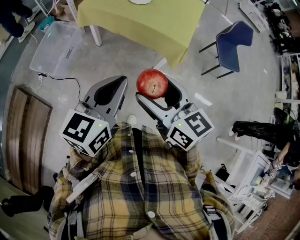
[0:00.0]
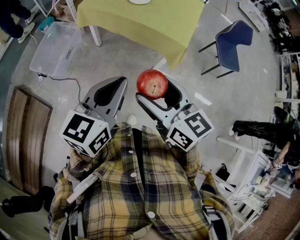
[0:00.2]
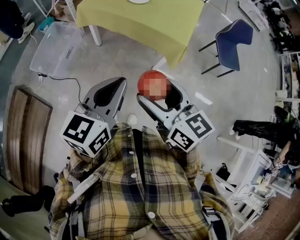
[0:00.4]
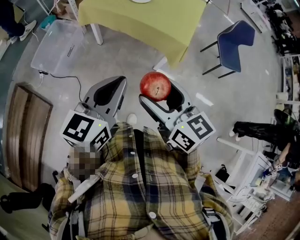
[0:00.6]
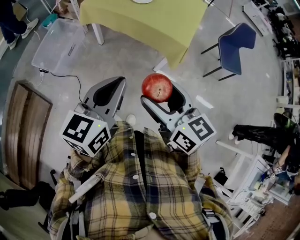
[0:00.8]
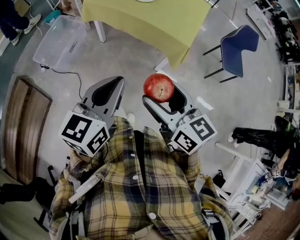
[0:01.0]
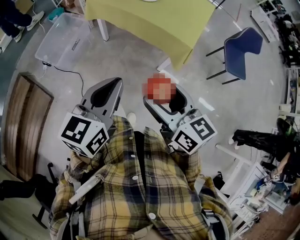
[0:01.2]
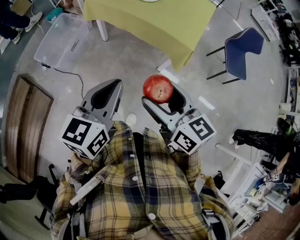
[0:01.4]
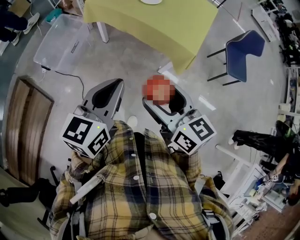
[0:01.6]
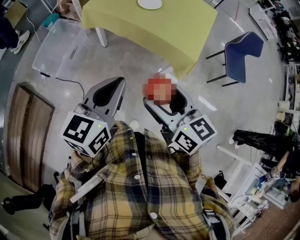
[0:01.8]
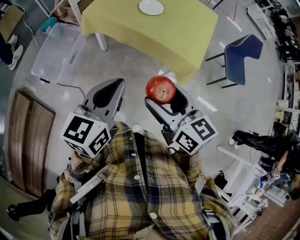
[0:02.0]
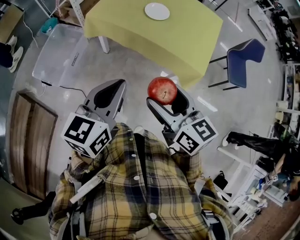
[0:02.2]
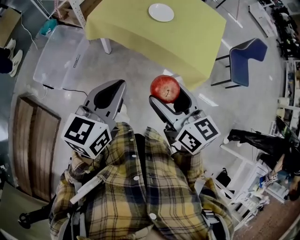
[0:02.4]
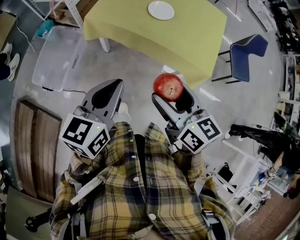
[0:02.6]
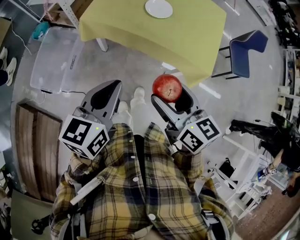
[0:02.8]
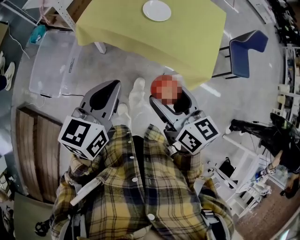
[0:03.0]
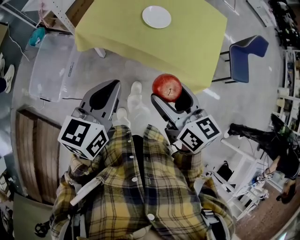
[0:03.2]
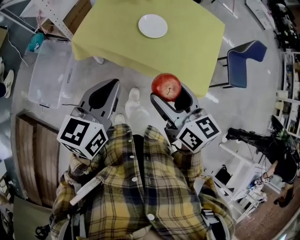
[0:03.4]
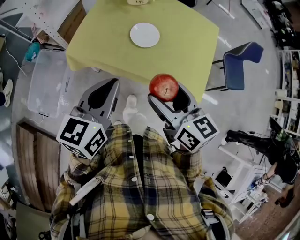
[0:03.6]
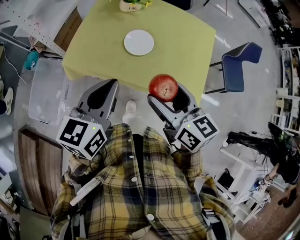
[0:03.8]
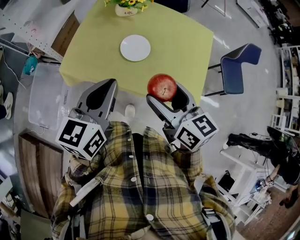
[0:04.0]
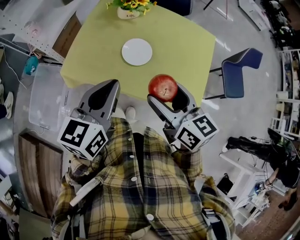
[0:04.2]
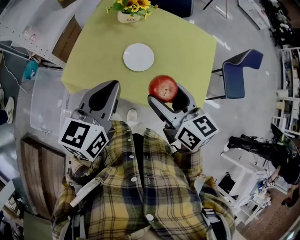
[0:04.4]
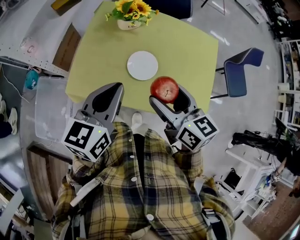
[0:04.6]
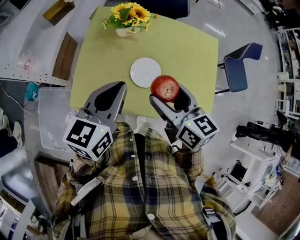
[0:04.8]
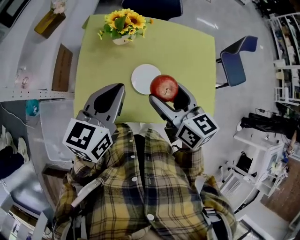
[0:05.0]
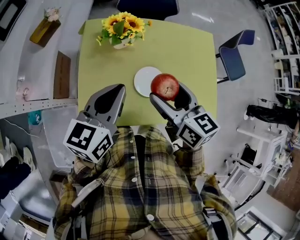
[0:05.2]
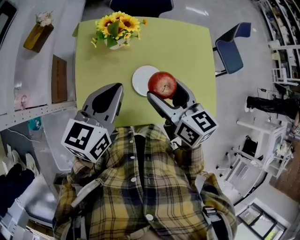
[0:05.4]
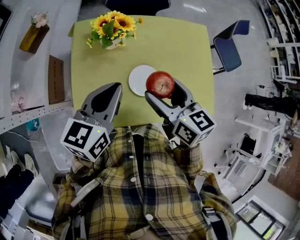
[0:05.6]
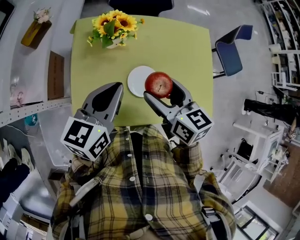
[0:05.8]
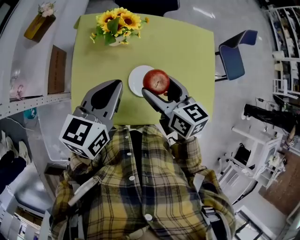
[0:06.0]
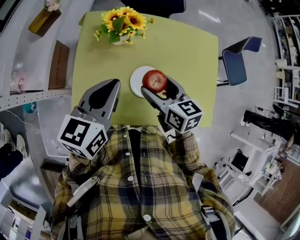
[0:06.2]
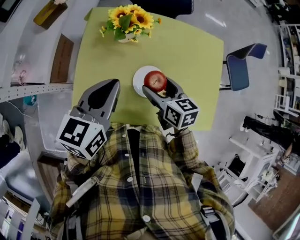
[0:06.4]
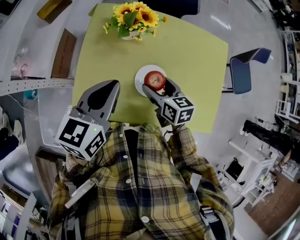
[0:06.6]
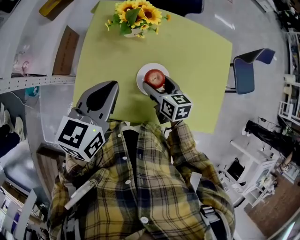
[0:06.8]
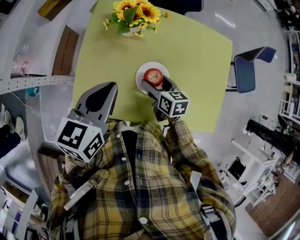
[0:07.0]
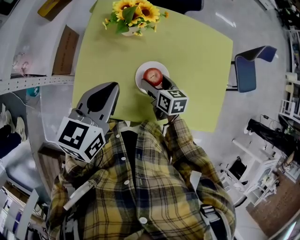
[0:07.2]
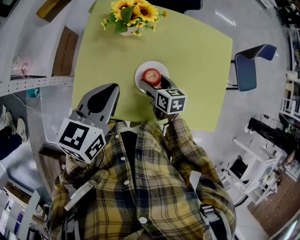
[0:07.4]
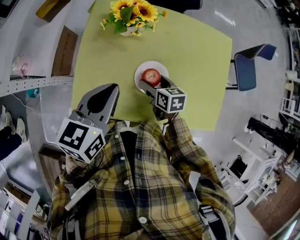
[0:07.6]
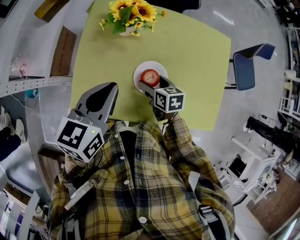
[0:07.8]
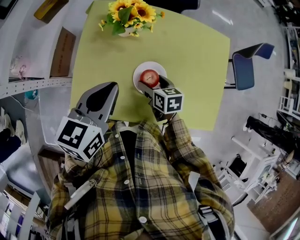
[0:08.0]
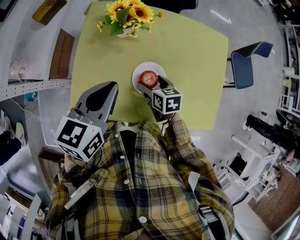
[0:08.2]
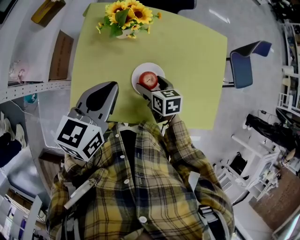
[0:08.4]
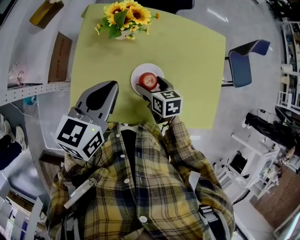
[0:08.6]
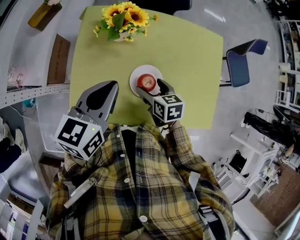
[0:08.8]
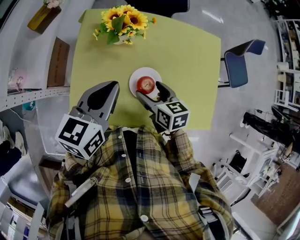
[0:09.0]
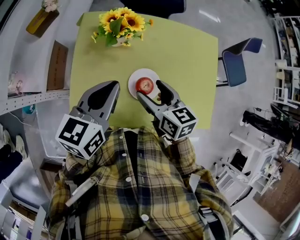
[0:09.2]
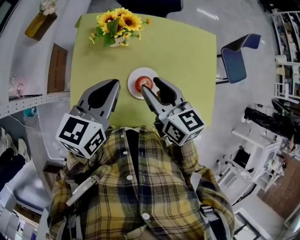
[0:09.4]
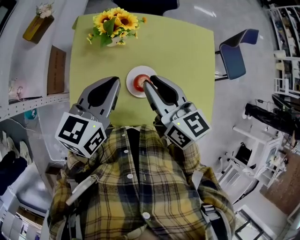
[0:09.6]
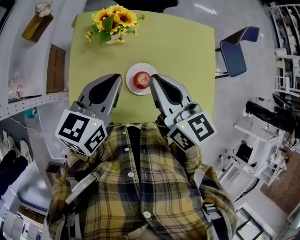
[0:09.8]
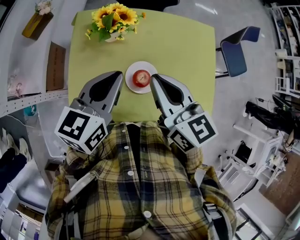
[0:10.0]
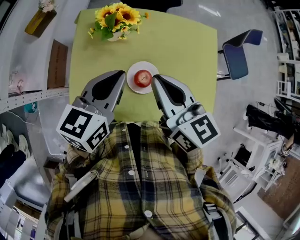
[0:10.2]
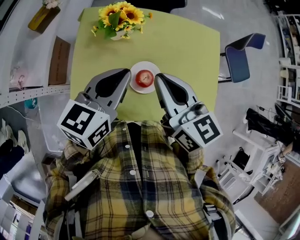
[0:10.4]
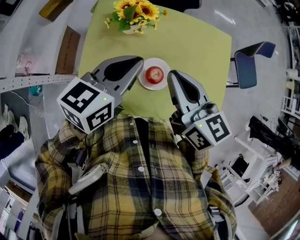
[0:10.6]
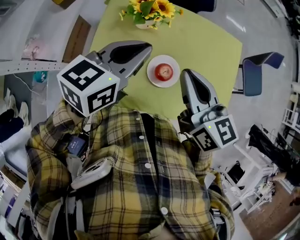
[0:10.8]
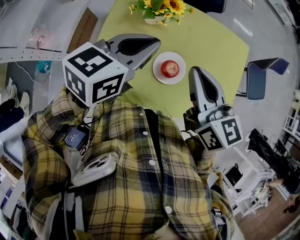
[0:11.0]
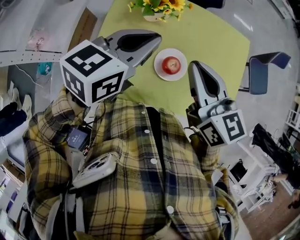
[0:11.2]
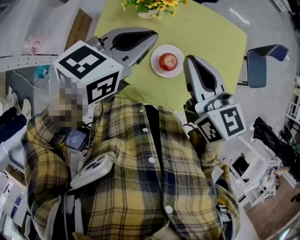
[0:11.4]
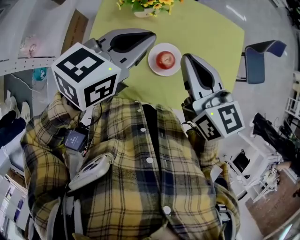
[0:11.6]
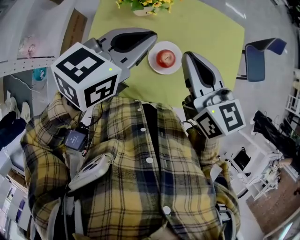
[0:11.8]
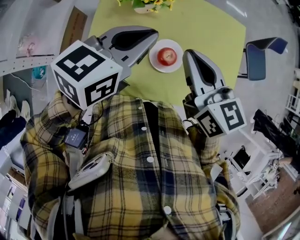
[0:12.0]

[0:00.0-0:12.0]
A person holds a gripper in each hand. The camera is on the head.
0:00.0 to 0:01.6: The left gripper shifts by some 5 cm, while the right gripper shifts by some 5 cm.
0:01.6 to 0:03.0: Both grippers travel together forward and to the left, approximately 25 cm.
0:03.0 to 0:04.4: Both grippers move forward, approximately 25 cm.
0:04.4 to 0:06.0: The left gripper is displaced forward by about 20 cm; the right gripper heads forward and to the left, covering about 20 cm.
0:06.0 to 0:07.6: The right gripper goes roughly 20 cm downward.
0:07.6 to 0:09.0: The right gripper is displaced upward by about 10 cm.
0:09.0 to 0:10.4: The left gripper moves some 5 cm. The right gripper heads upward, covering approximately 20 cm, rotates roughly 30 degrees, and closes up.
0:10.4 to 0:12.0: There are only small adjustments of the grippers.

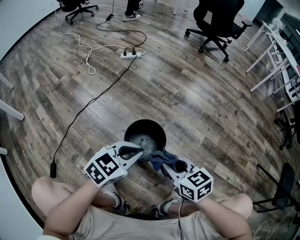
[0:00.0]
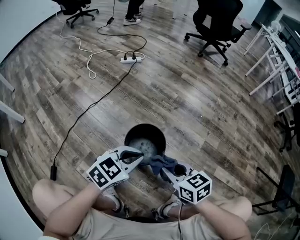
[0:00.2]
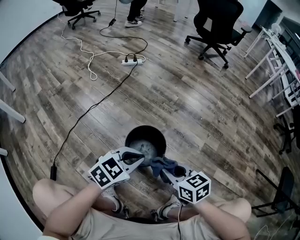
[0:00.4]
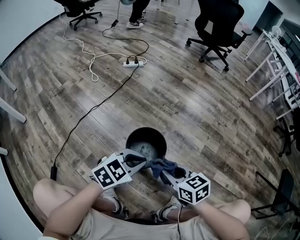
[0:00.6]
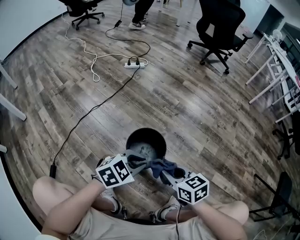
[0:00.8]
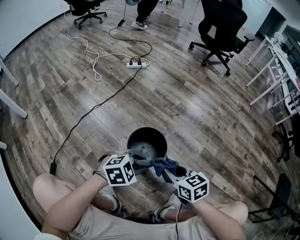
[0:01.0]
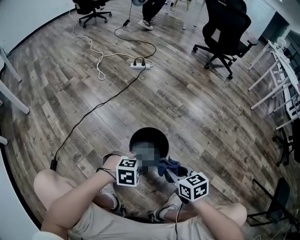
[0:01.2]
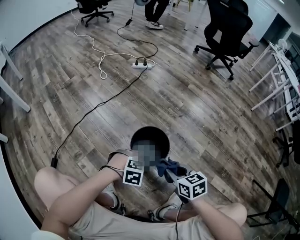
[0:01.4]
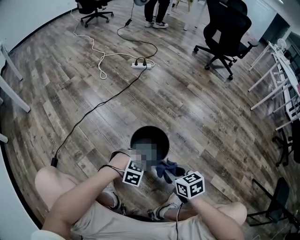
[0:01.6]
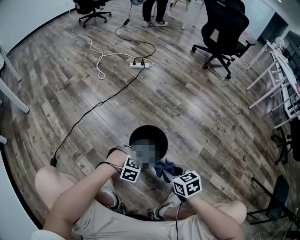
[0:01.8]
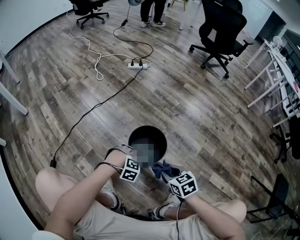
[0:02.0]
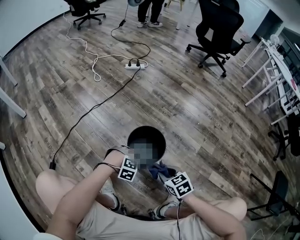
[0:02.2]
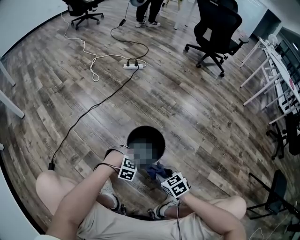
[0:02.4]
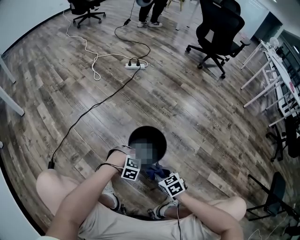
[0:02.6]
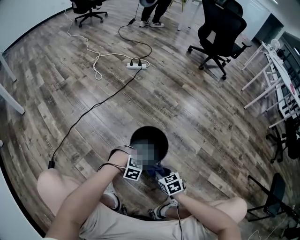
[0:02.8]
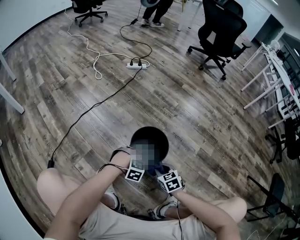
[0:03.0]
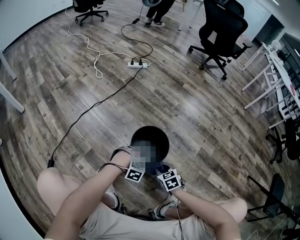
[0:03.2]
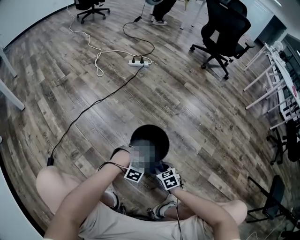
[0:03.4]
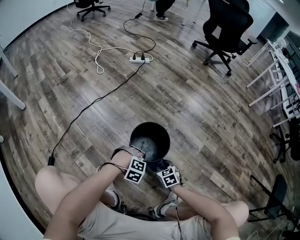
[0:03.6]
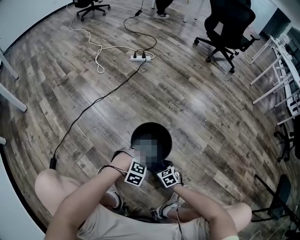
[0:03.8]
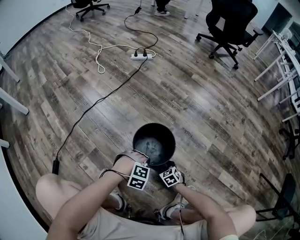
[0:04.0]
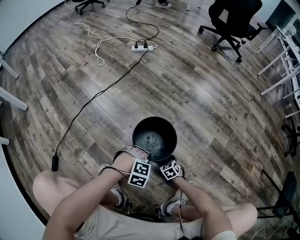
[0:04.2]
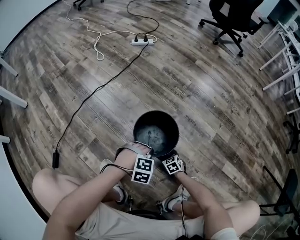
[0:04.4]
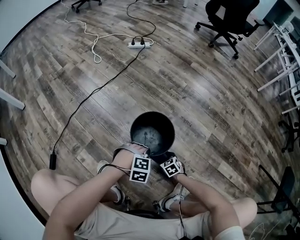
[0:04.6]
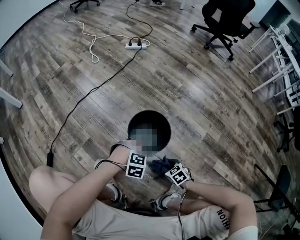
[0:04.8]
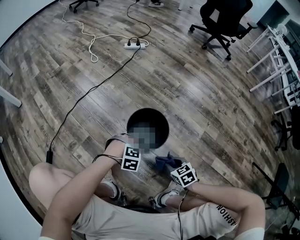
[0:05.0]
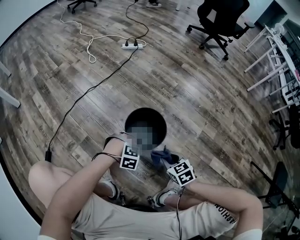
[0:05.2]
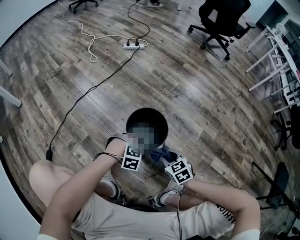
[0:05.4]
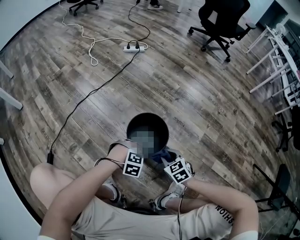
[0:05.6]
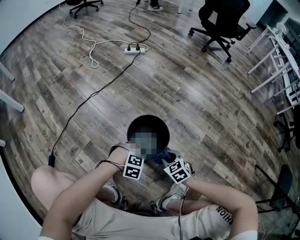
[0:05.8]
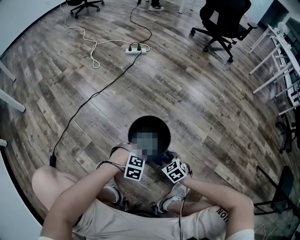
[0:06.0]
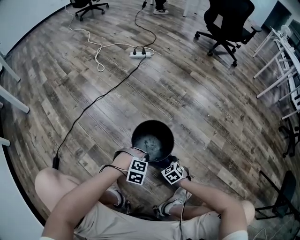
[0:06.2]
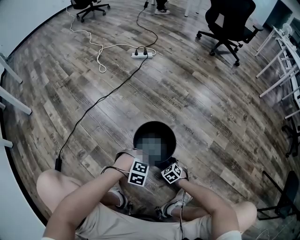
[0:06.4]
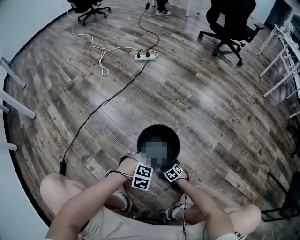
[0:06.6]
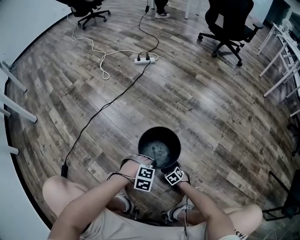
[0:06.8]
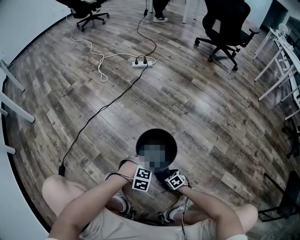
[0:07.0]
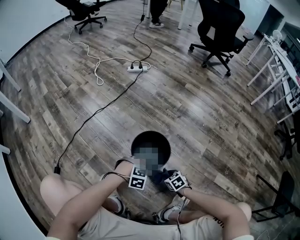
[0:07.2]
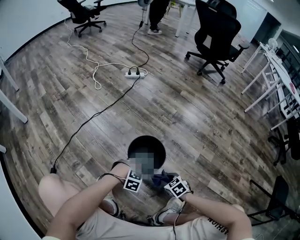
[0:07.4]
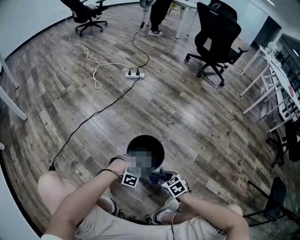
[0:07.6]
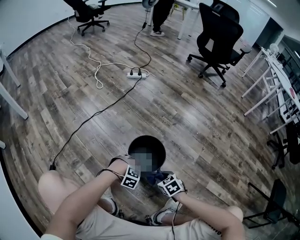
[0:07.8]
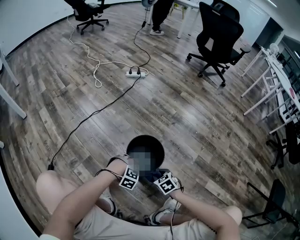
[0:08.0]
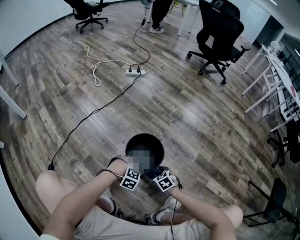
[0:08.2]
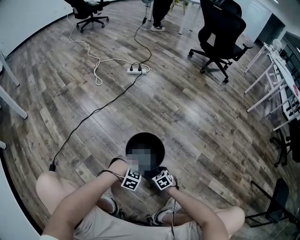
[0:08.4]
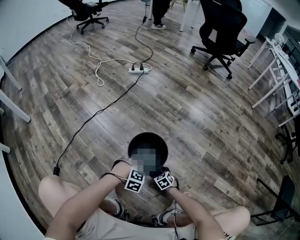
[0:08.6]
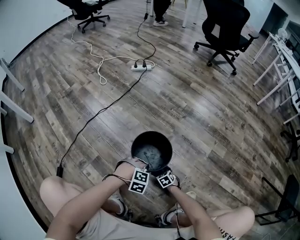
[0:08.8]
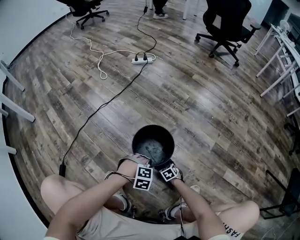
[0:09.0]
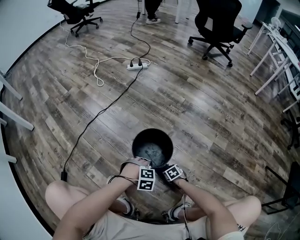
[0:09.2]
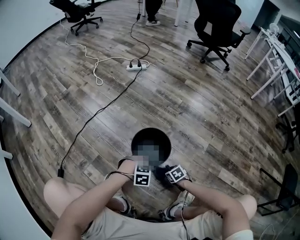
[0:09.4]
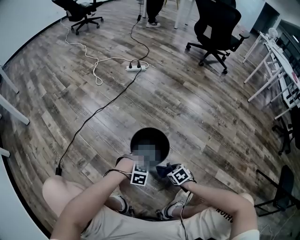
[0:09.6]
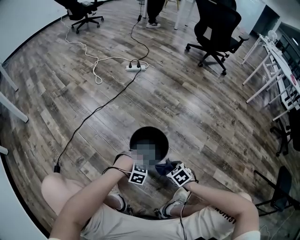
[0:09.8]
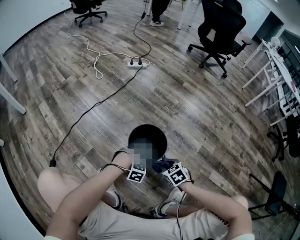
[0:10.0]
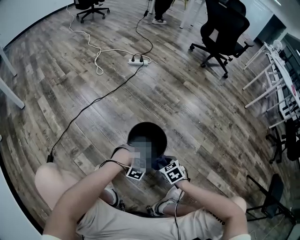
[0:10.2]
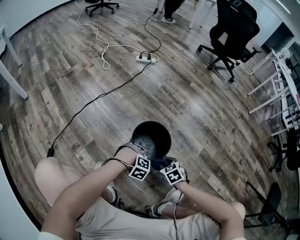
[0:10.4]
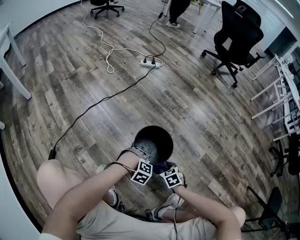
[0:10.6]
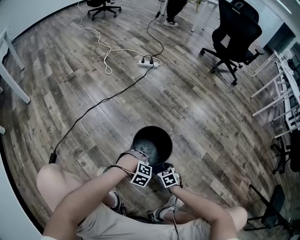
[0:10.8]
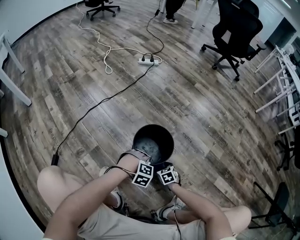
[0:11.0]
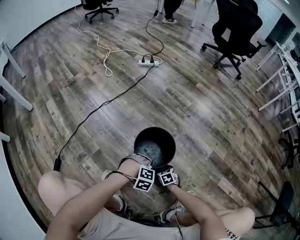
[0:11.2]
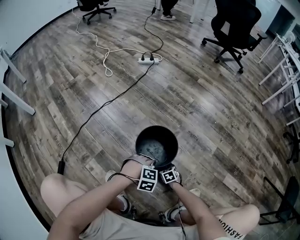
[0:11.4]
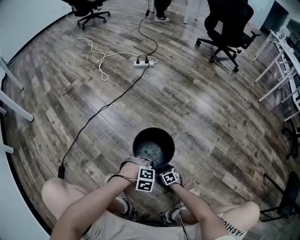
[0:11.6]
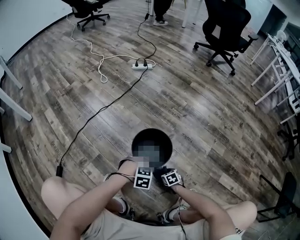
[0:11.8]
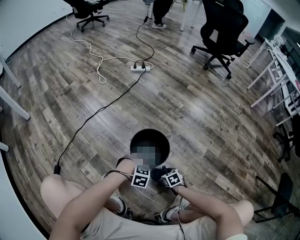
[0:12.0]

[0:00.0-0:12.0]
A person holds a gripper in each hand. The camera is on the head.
0:00.0 to 0:01.6: The right gripper is displaced downward by approximately 5 cm.
0:01.6 to 0:03.0: The right gripper is displaced downward by some 15 cm.
0:03.0 to 0:04.4: The right gripper goes roughly 20 cm downward.
0:04.4 to 0:06.0: The right gripper shifts approximately 15 cm upward.
0:06.0 to 0:07.6: The right gripper travels downward and back again, about 15 cm each way.
0:07.6 to 0:09.0: The right gripper shifts about 25 cm downward.
0:09.0 to 0:10.4: The right gripper moves upward, about 20 cm.
0:10.4 to 0:12.0: The right gripper travels downward by roughly 10 cm.
